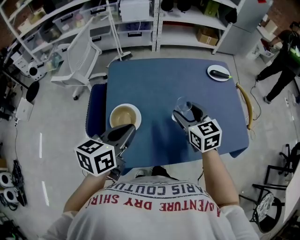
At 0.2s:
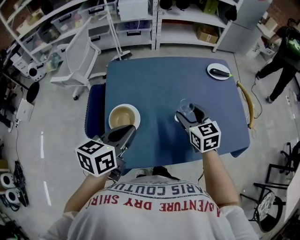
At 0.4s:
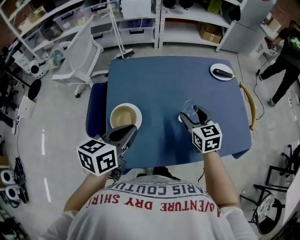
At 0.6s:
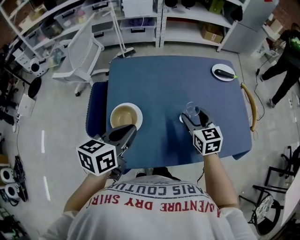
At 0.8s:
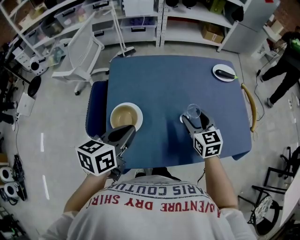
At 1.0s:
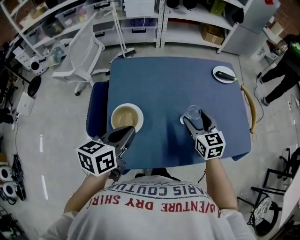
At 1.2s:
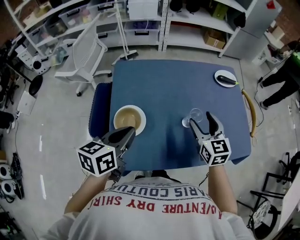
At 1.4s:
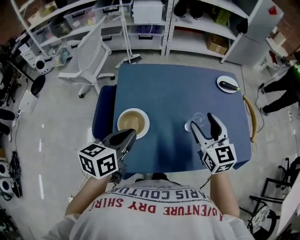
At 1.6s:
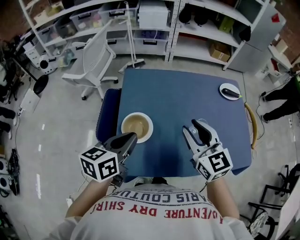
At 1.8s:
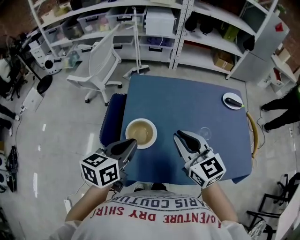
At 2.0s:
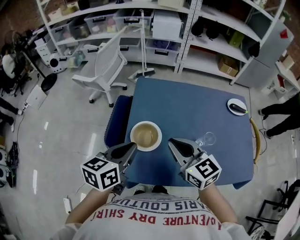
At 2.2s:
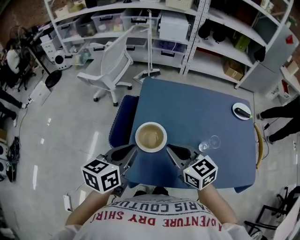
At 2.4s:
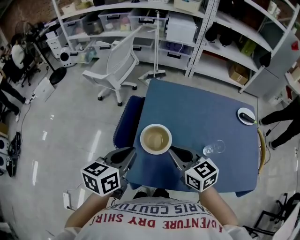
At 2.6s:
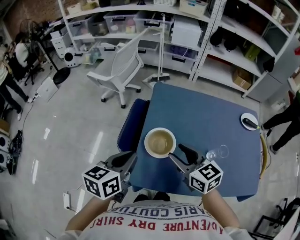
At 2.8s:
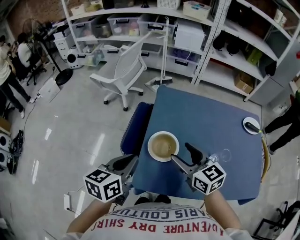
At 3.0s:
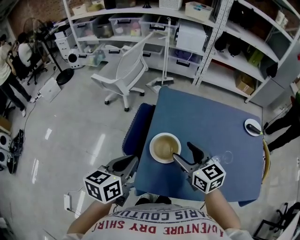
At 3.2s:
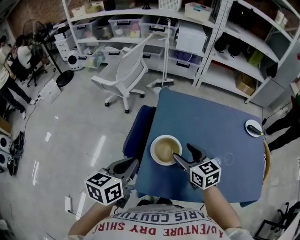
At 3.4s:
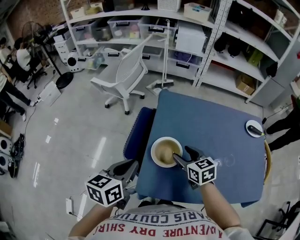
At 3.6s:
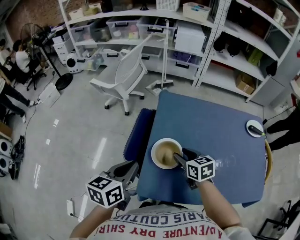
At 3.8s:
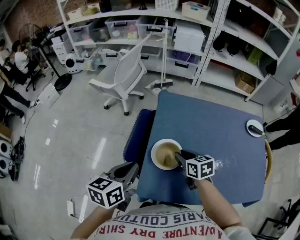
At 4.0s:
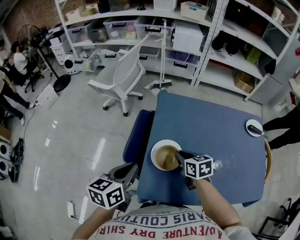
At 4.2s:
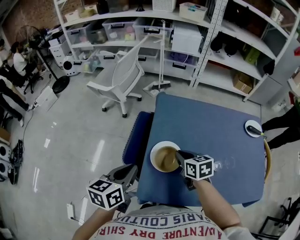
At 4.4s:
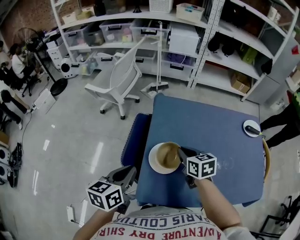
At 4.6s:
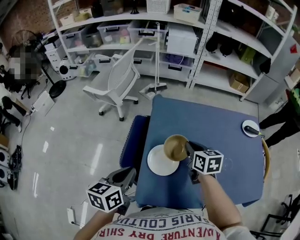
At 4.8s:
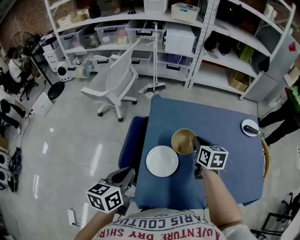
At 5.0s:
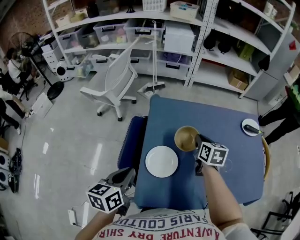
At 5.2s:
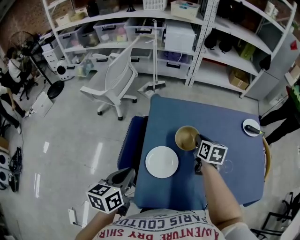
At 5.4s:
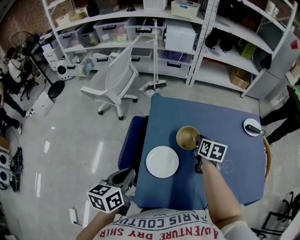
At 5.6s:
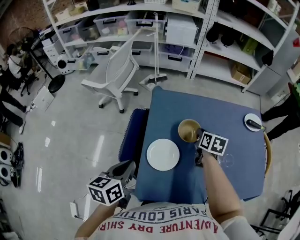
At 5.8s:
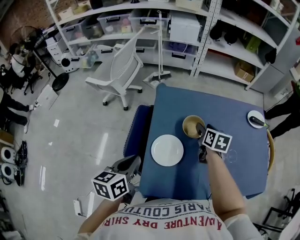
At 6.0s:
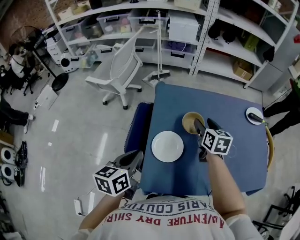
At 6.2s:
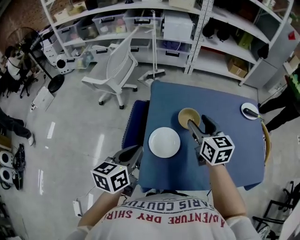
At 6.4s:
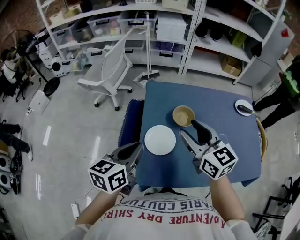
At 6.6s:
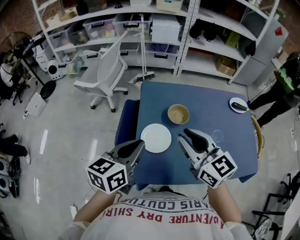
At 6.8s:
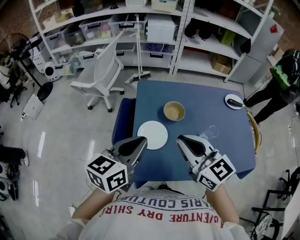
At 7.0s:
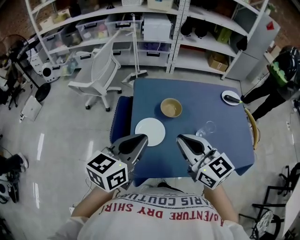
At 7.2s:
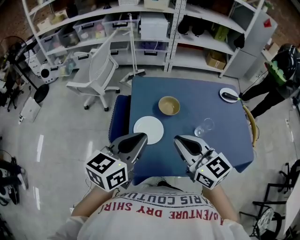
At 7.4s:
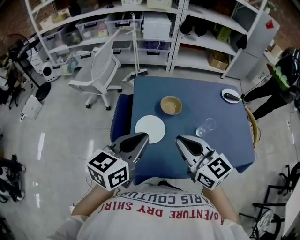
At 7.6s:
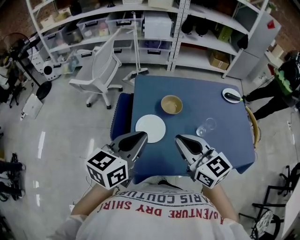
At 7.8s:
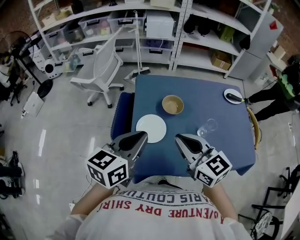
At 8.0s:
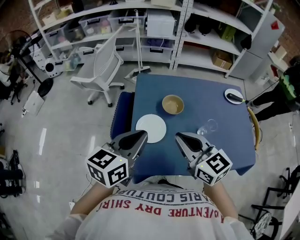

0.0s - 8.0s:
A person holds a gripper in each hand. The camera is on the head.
0.0s - 1.6s: The right gripper moves upward, roughly 10 cm, and closes up.
1.6s - 3.2s: The right gripper moves to the left and downward, roughly 15 cm, rotates approximately 20 degrees, and opens its fingers. The left gripper goes roughly 10 cm to the left.
3.2s - 4.8s: The right gripper moves to the right and forward, some 15 cm, turns by some 30 degrees, and closes up.
4.8s - 6.4s: The left gripper moves upward, about 5 cm. Meanwhile the right gripper is displaced upward and backward by roughly 20 cm, turns by approximately 30 degrees, and opens its fingers.
6.4s - 8.0s: The right gripper heads backward, covering roughly 10 cm, and closes its fingers. The left gripper heads to the right, covering about 5 cm.

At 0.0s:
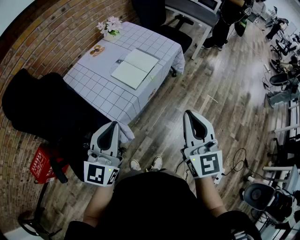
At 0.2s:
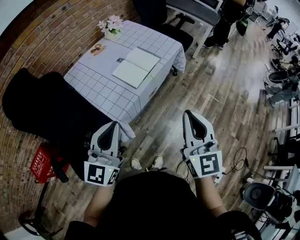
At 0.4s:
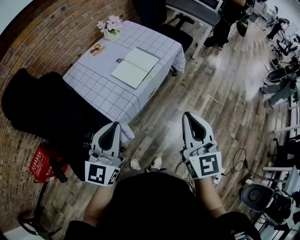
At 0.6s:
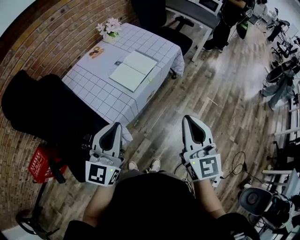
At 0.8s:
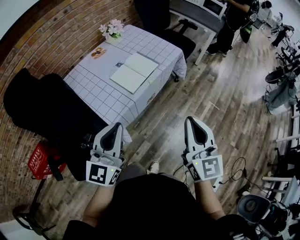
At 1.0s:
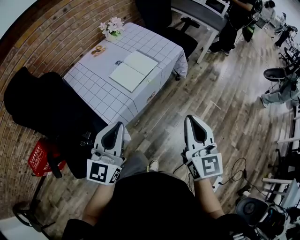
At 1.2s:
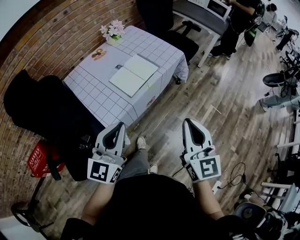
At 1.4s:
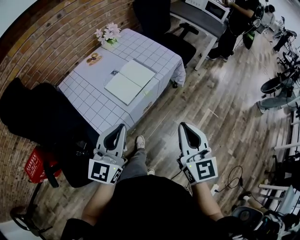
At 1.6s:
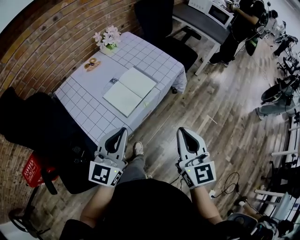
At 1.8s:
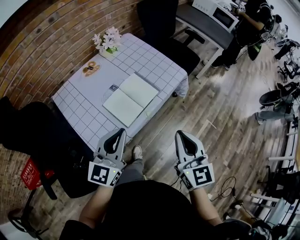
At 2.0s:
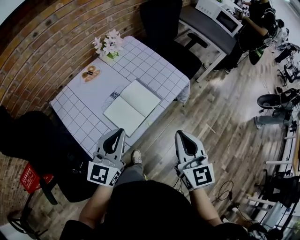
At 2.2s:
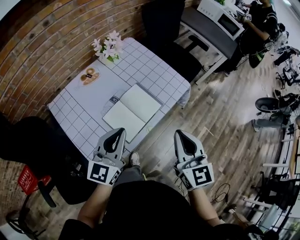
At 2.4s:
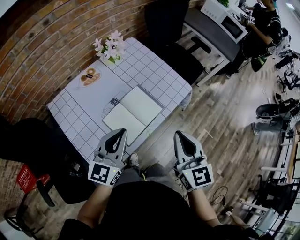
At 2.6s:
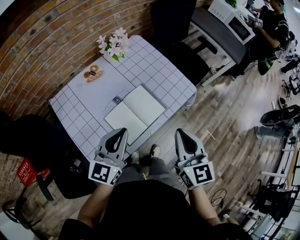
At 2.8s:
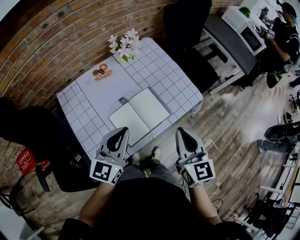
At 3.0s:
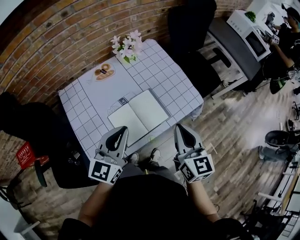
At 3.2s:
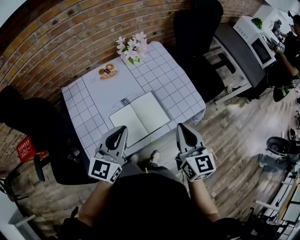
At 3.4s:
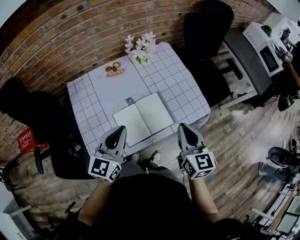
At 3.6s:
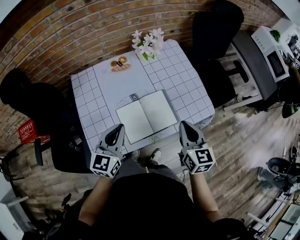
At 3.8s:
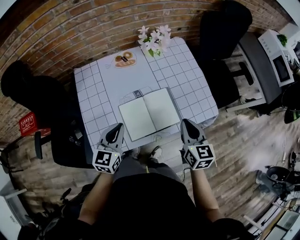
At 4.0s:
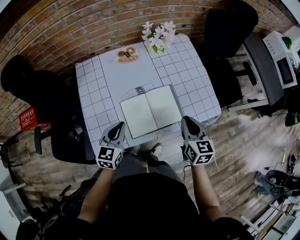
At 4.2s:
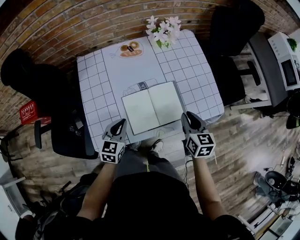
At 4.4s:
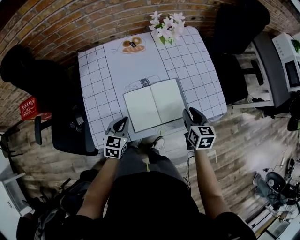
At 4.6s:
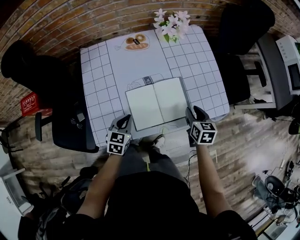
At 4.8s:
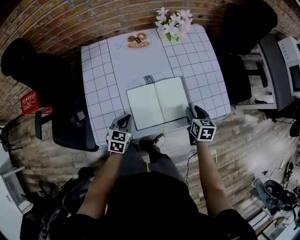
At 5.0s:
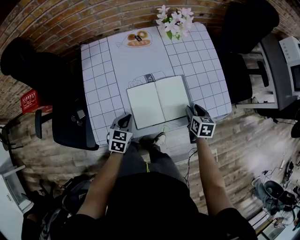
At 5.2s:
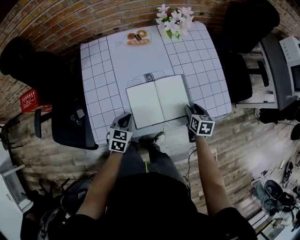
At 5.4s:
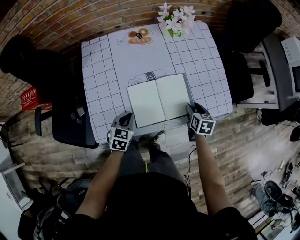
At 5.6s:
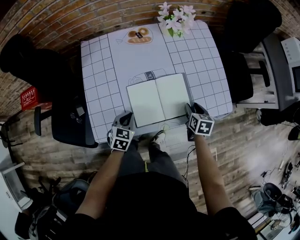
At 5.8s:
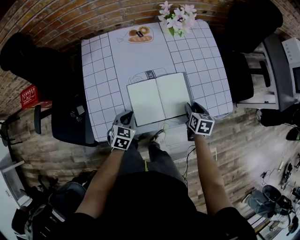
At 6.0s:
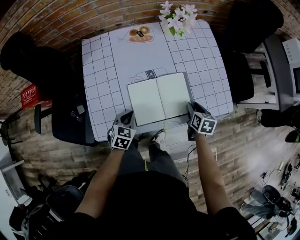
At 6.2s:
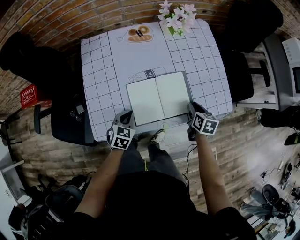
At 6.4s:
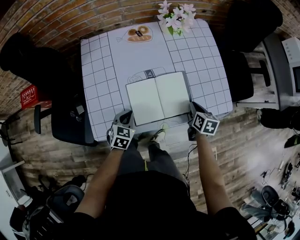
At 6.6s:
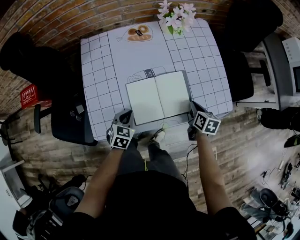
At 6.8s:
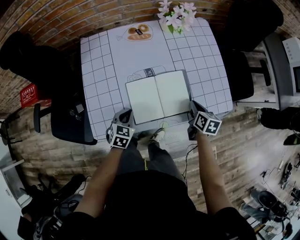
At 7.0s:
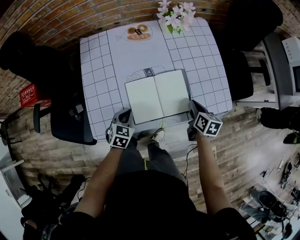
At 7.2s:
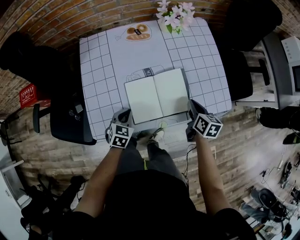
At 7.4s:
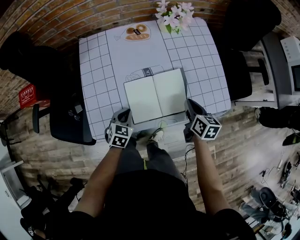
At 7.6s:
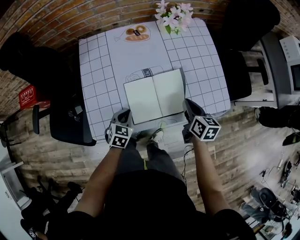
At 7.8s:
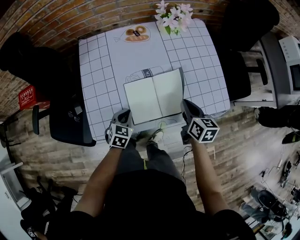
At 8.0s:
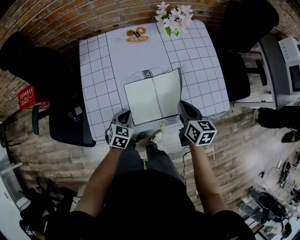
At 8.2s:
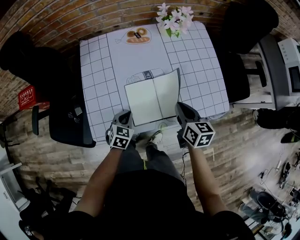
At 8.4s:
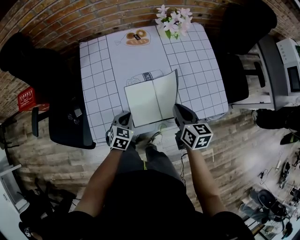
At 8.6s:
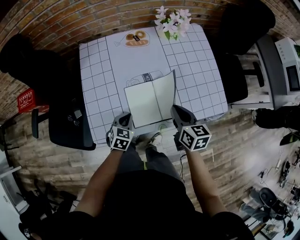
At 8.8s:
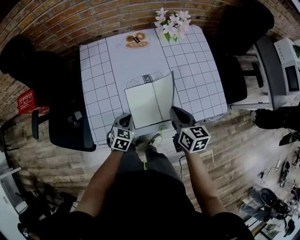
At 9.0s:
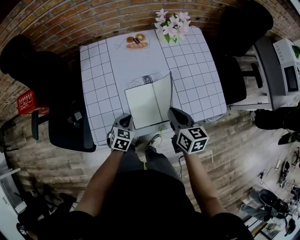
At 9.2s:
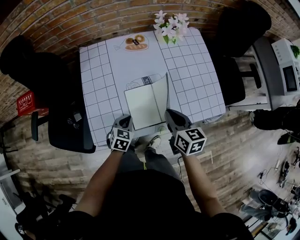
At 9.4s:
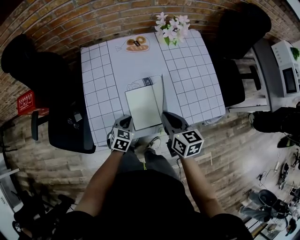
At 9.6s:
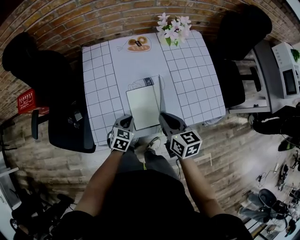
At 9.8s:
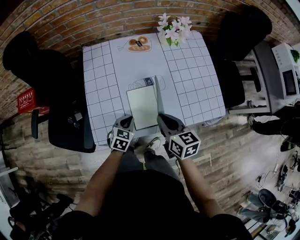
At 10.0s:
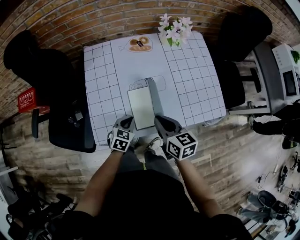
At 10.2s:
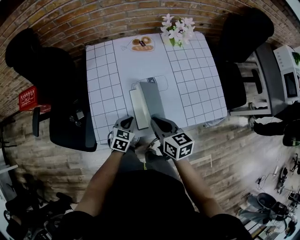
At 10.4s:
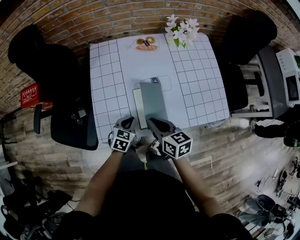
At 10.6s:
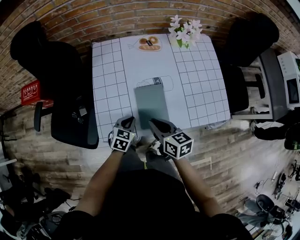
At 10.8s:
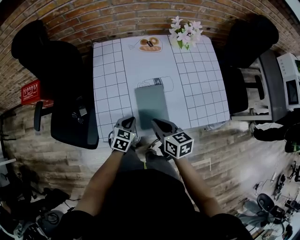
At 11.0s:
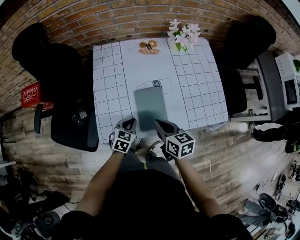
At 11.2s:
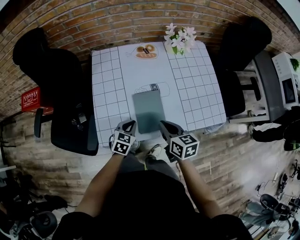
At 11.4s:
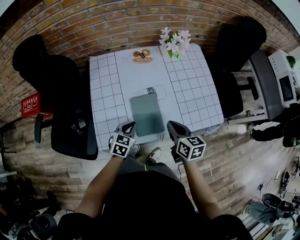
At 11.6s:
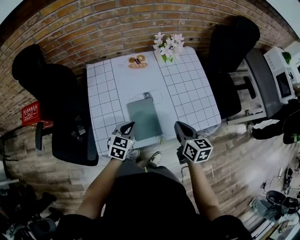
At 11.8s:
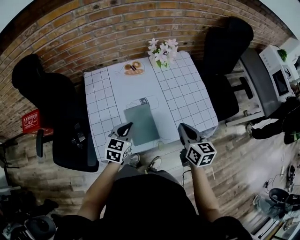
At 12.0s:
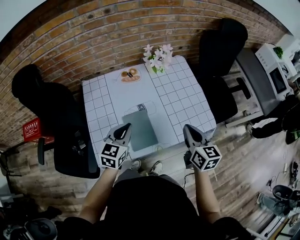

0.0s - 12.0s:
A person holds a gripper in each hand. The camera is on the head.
0.0s - 1.6s: The right gripper moves forward, about 15 cm; the left gripper heads forward and to the right, covering approximately 20 cm.
1.6s - 3.0s: The grippers both shift forward by about 25 cm.
3.0s - 4.4s: The right gripper is displaced downward and forward by approximately 25 cm, rotates approximately 30 degrees, and opens up; the left gripper shifts approximately 25 cm downward, and tips its fingers downward by roughly 30 degrees.
4.4s - 6.0s: Both grippers move downward, about 10 cm.
6.0s - 7.6s: The right gripper shifts about 10 cm upward, and closes up.
7.6s - 9.0s: The right gripper travels to the left by some 10 cm.
9.0s - 10.4s: The right gripper heads to the left, covering approximately 10 cm.
10.4s - 12.0s: The left gripper goes about 20 cm upward, and rotates roughly 20 degrees. Meanwhile the right gripper shifts some 25 cm to the right and upward, and swivels approximately 30 degrees.

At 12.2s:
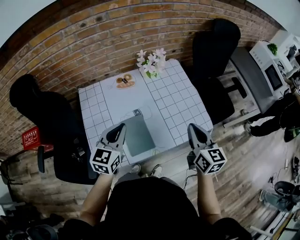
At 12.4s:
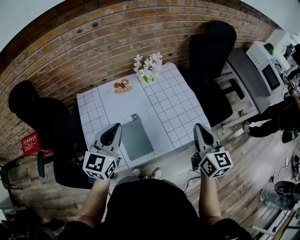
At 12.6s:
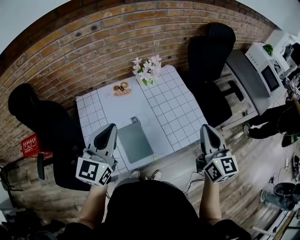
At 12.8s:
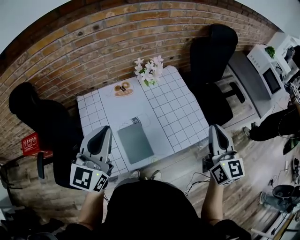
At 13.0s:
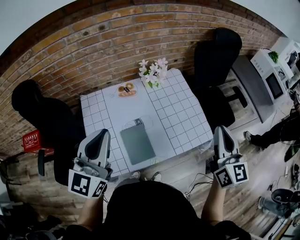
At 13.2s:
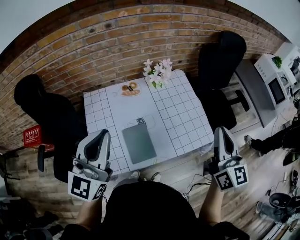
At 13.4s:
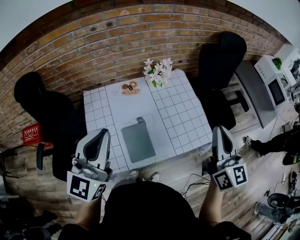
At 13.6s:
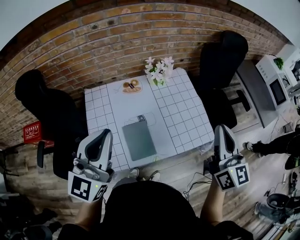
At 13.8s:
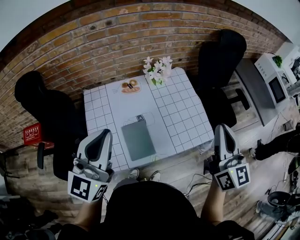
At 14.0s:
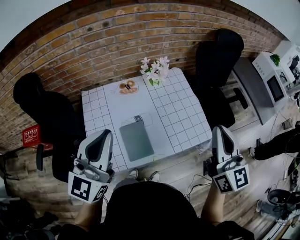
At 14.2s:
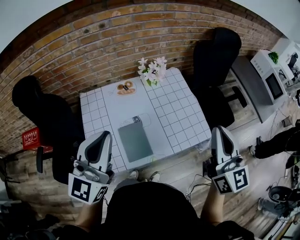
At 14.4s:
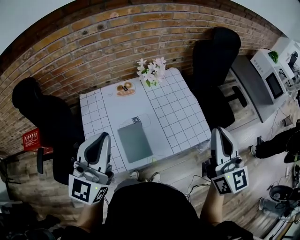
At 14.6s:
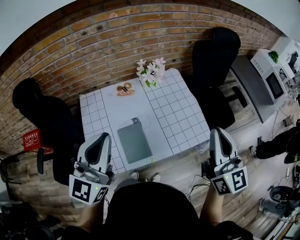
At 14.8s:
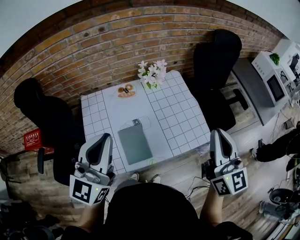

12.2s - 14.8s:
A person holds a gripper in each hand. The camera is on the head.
12.2s - 13.4s: Both grippers move upward, about 20 cm. The left gripper swivels some 30 degrees.
13.4s - 14.8s: The grippers stay close to where they were, moving slightly.

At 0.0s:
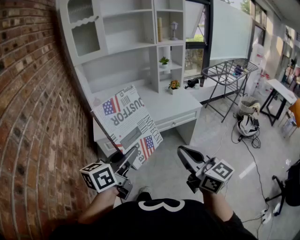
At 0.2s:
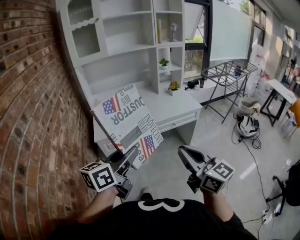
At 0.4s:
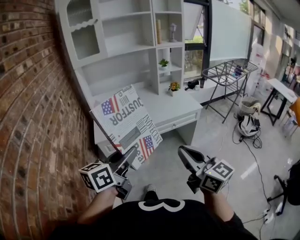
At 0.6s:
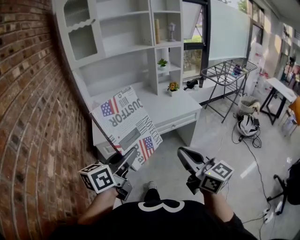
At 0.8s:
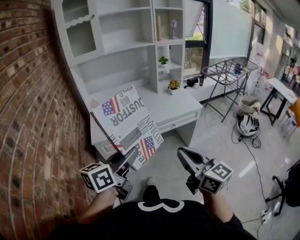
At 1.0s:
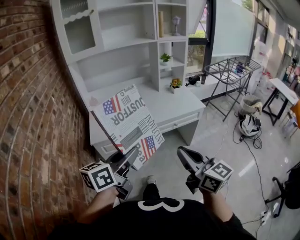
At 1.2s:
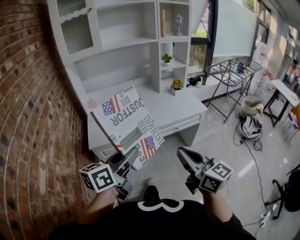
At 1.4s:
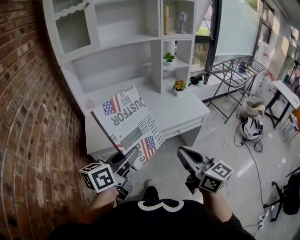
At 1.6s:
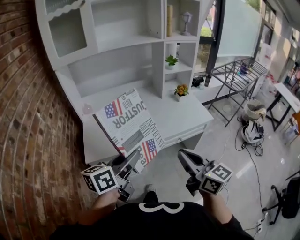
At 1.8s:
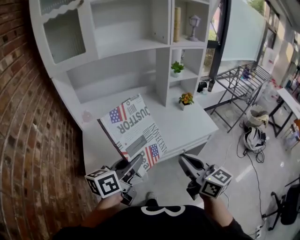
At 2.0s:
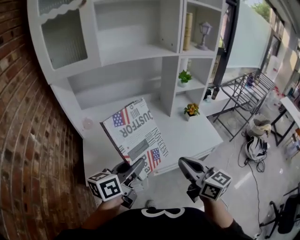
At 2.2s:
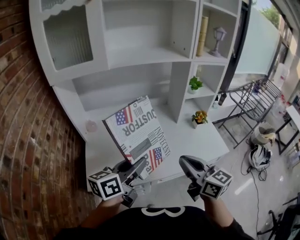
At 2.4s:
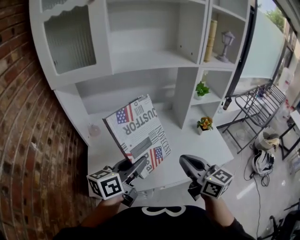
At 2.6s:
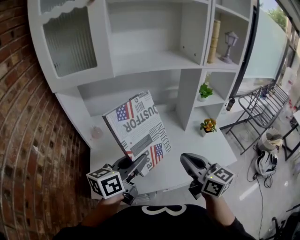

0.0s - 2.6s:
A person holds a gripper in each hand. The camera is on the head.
0.0s - 1.2s: The two grippers go roughly 10 cm forward.
1.2s - 2.6s: The two grippers go about 40 cm forward.
